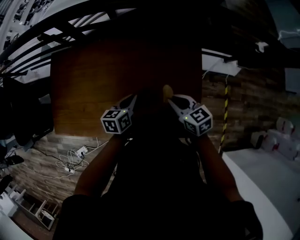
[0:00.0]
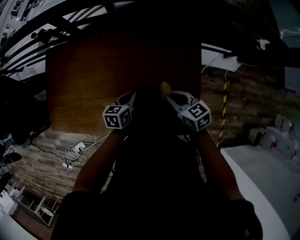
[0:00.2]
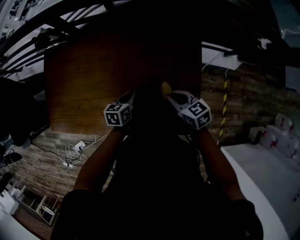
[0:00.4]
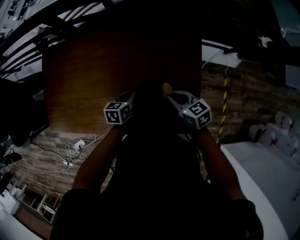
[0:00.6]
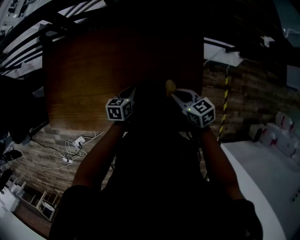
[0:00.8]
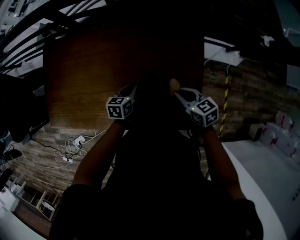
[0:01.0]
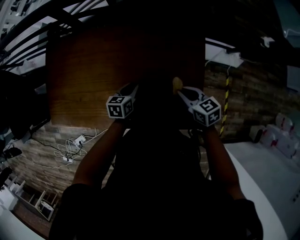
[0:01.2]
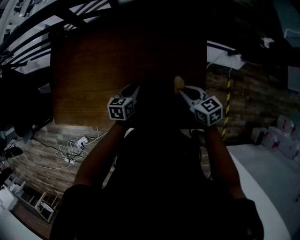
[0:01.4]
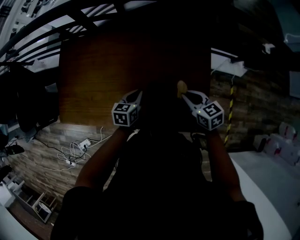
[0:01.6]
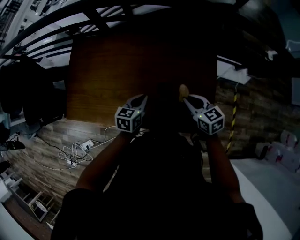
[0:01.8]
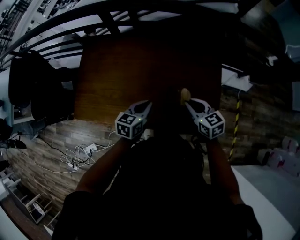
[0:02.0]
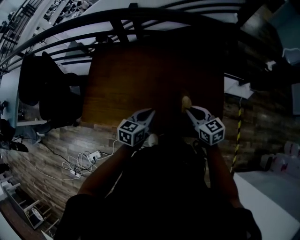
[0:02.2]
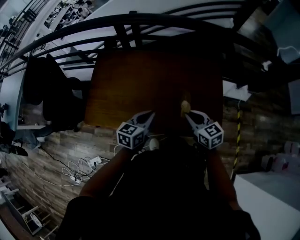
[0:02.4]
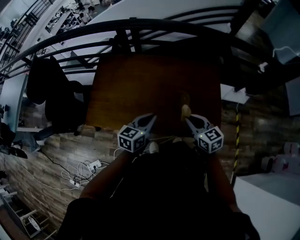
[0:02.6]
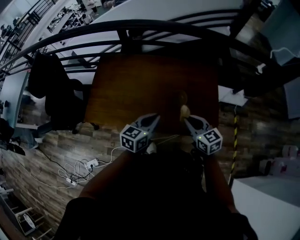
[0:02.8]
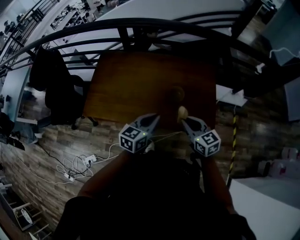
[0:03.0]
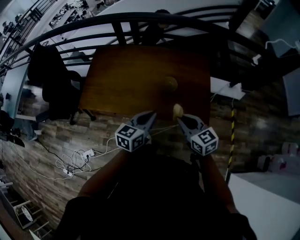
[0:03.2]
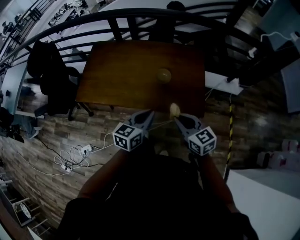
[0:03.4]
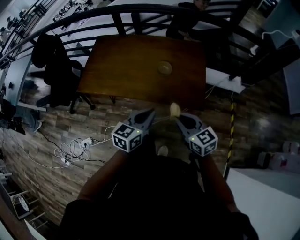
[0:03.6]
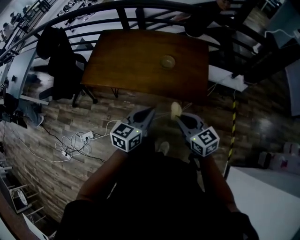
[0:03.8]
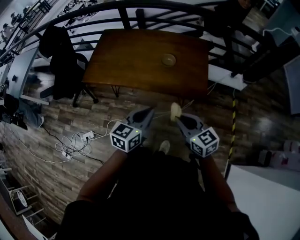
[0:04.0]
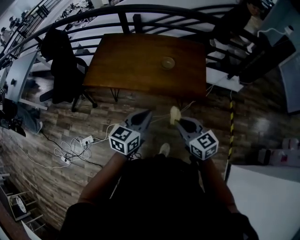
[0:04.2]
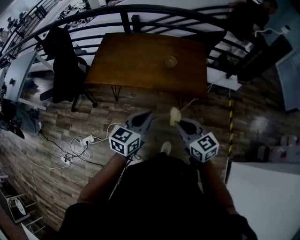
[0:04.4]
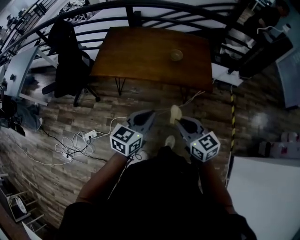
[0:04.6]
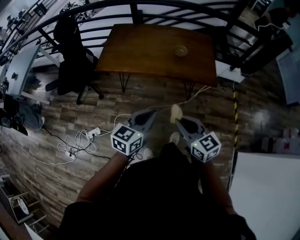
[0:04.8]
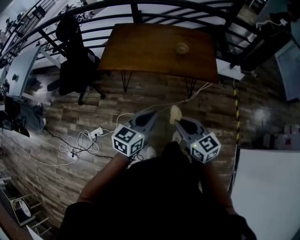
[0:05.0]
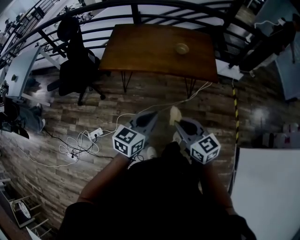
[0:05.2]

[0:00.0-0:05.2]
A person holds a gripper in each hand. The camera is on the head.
0:00.0 to 0:01.8: The right gripper moves roughly 5 cm; the left gripper heads backward and to the left, covering about 10 cm, and travels downward and back again, some 10 cm each way.
0:01.8 to 0:03.4: The right gripper travels backward by approximately 30 cm; the left gripper is displaced backward and upward by some 35 cm.
0:03.4 to 0:05.2: Both grippers travel together backward and to the left, some 40 cm.

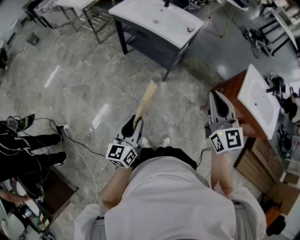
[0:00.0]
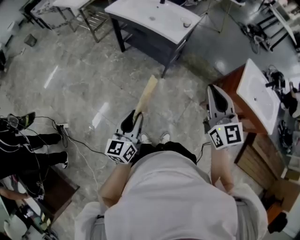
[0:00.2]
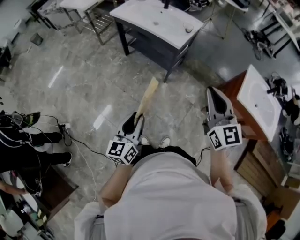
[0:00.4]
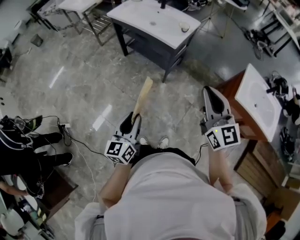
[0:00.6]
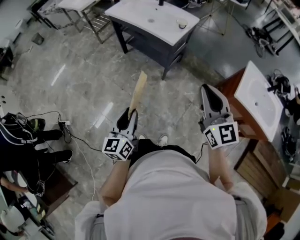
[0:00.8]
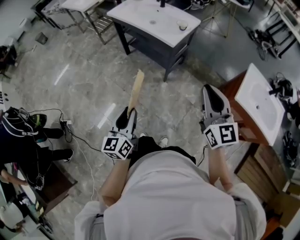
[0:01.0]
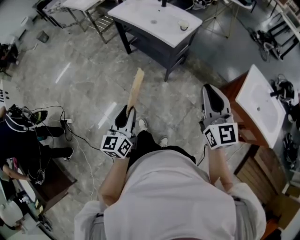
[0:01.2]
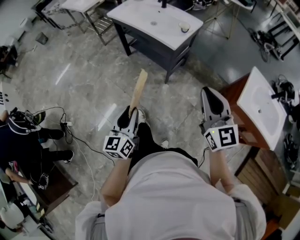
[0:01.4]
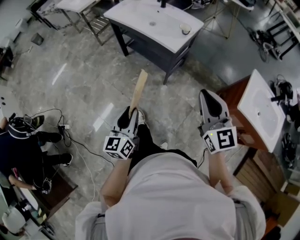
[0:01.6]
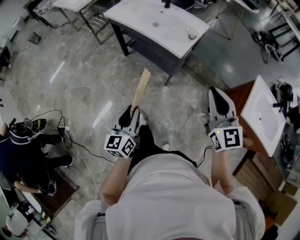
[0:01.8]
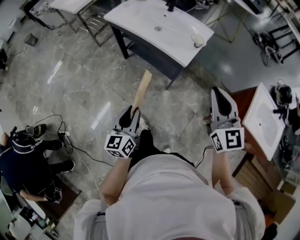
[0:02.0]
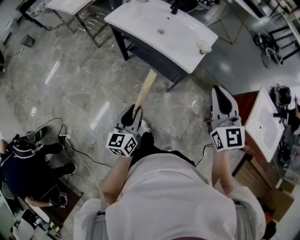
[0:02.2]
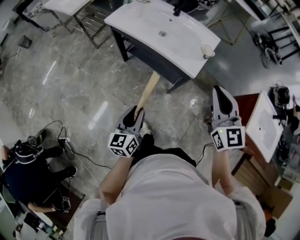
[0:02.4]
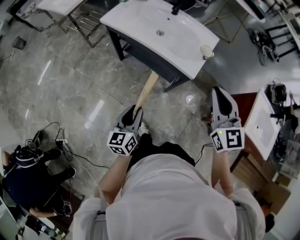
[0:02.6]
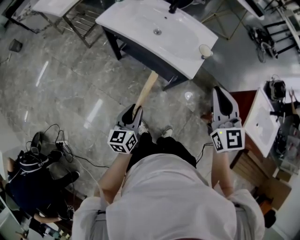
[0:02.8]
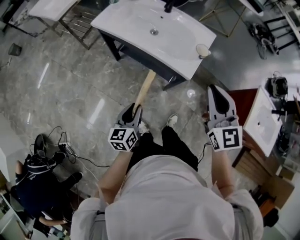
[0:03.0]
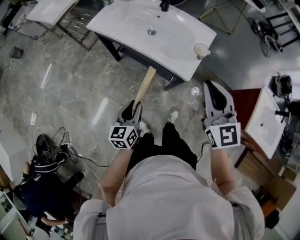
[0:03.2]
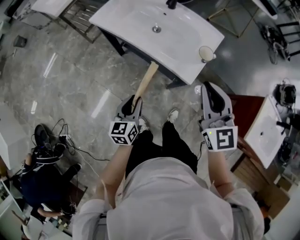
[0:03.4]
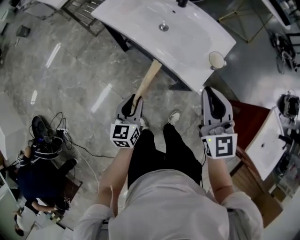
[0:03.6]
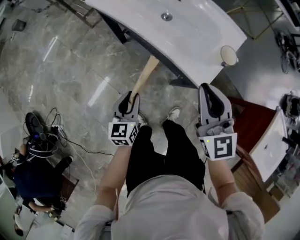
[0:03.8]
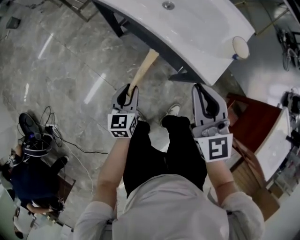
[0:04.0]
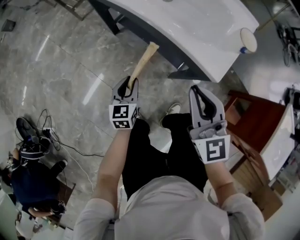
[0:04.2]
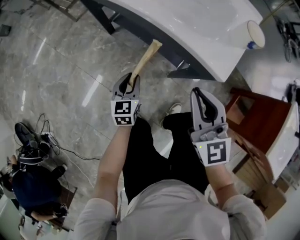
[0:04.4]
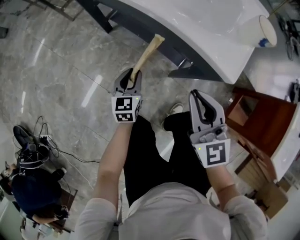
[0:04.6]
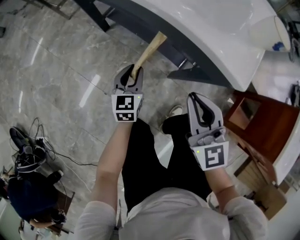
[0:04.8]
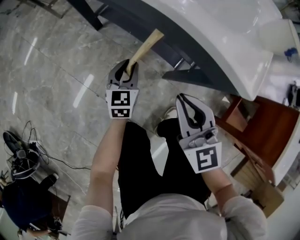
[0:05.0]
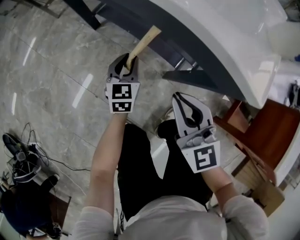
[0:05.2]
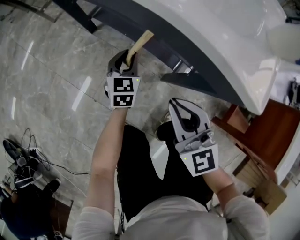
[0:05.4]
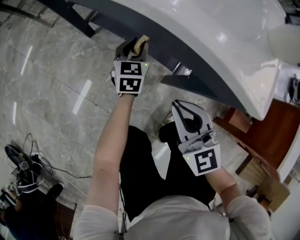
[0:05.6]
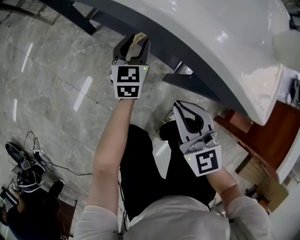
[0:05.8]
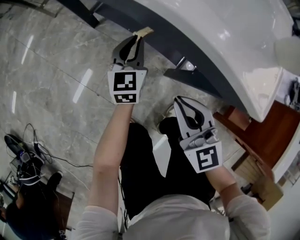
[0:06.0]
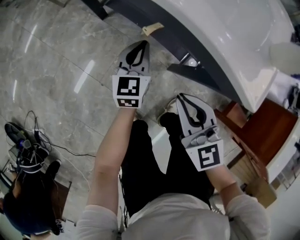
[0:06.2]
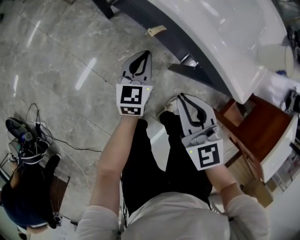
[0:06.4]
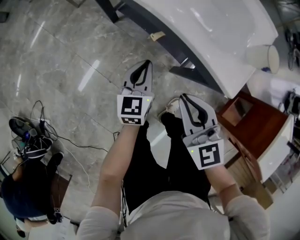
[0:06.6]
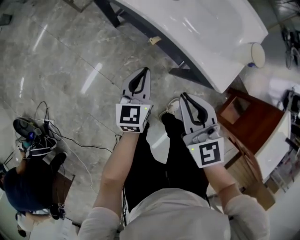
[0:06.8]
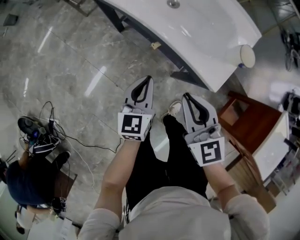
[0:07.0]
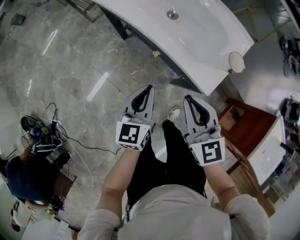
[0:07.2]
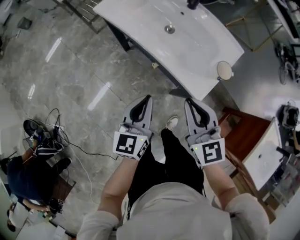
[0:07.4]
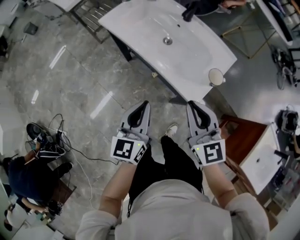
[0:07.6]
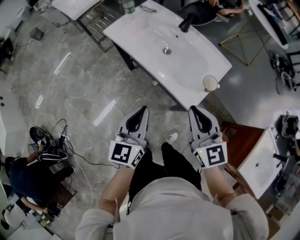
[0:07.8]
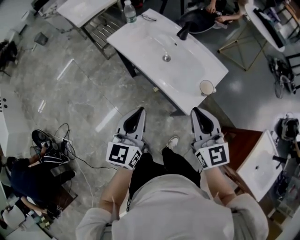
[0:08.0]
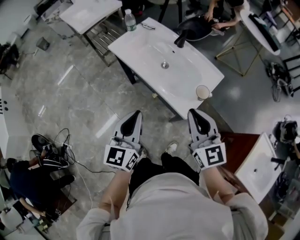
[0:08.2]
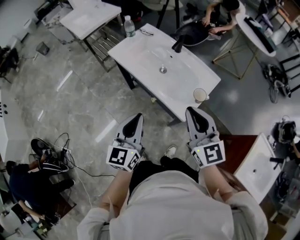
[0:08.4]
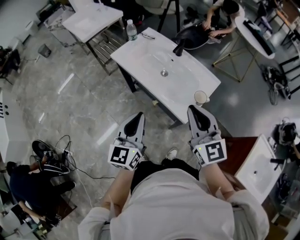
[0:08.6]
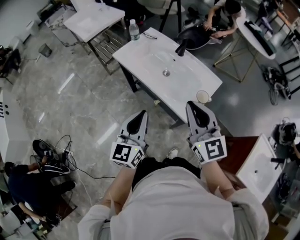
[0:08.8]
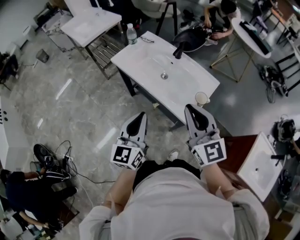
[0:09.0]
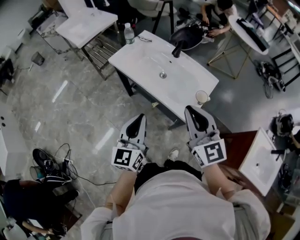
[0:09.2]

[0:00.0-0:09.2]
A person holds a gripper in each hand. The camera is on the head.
0:00.0 to 0:01.6: The left gripper is displaced forward and to the right by about 10 cm. Meanwhile the right gripper moves forward, about 10 cm.
0:01.6 to 0:03.0: The grippers both shift forward by approximately 25 cm.
0:03.0 to 0:04.6: The left gripper heads downward and forward, covering approximately 35 cm, while the right gripper travels downward by about 35 cm.
0:04.6 to 0:06.2: The right gripper is displaced downward by approximately 10 cm, while the left gripper is displaced forward by some 10 cm, and closes.
0:06.2 to 0:07.6: Both grippers move upward, roughly 35 cm.
0:07.6 to 0:09.2: Both grippers move upward, approximately 15 cm.

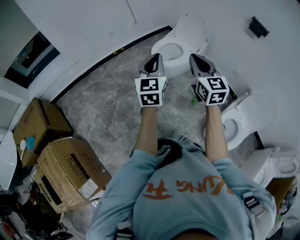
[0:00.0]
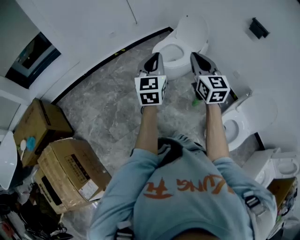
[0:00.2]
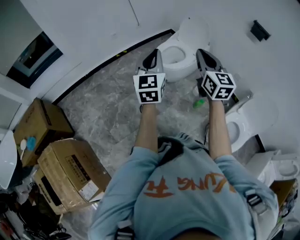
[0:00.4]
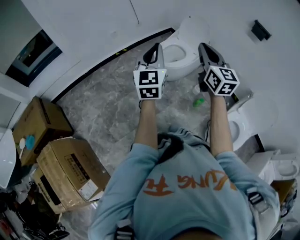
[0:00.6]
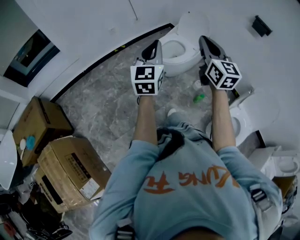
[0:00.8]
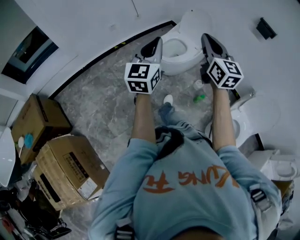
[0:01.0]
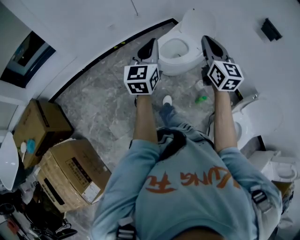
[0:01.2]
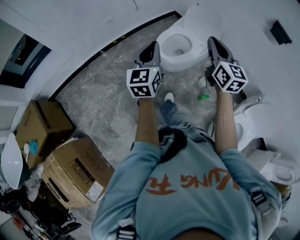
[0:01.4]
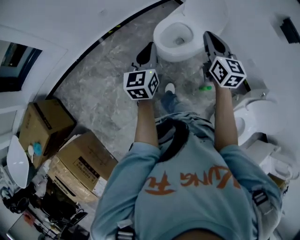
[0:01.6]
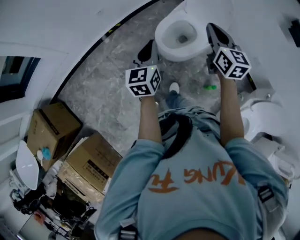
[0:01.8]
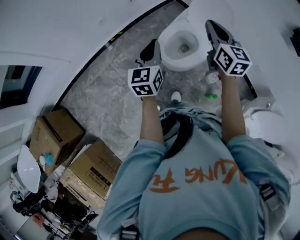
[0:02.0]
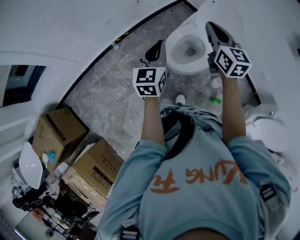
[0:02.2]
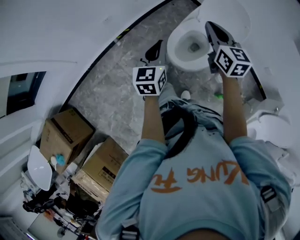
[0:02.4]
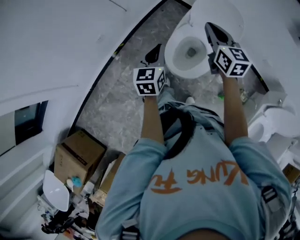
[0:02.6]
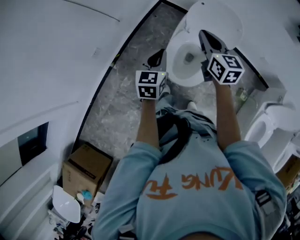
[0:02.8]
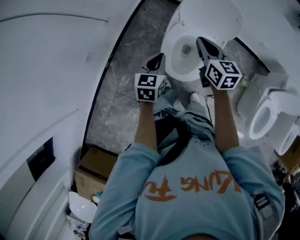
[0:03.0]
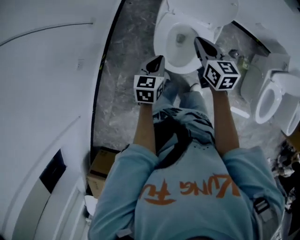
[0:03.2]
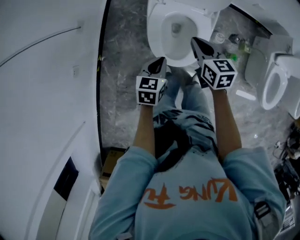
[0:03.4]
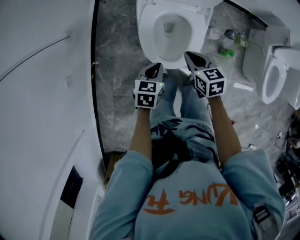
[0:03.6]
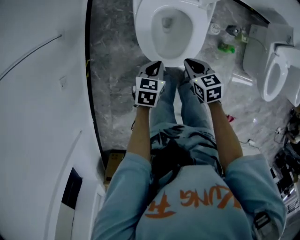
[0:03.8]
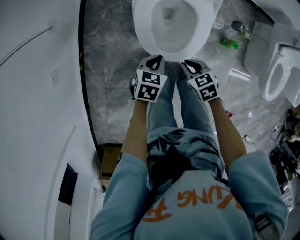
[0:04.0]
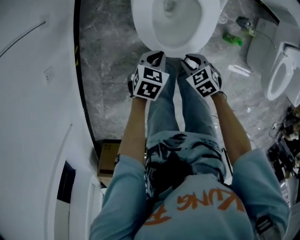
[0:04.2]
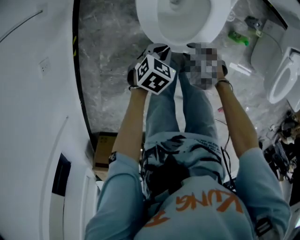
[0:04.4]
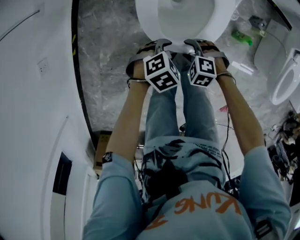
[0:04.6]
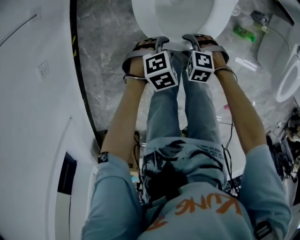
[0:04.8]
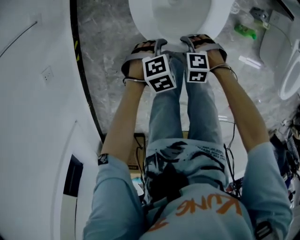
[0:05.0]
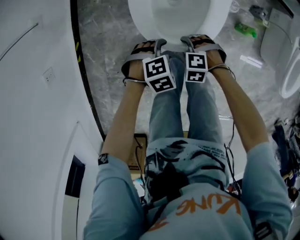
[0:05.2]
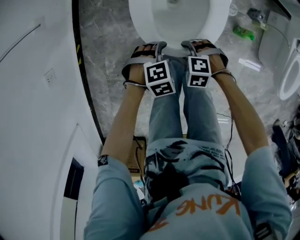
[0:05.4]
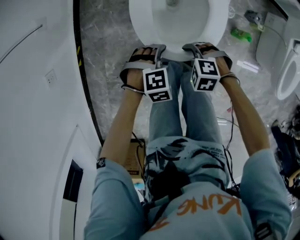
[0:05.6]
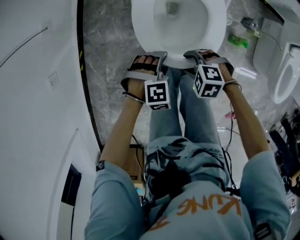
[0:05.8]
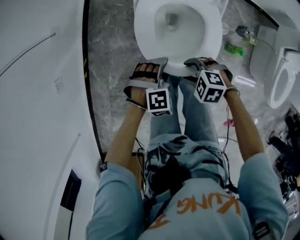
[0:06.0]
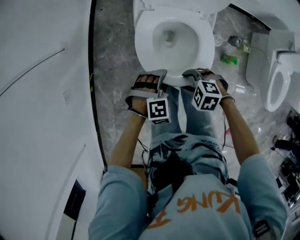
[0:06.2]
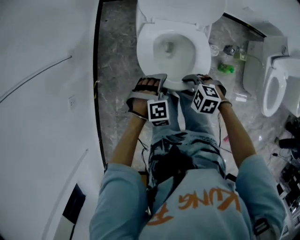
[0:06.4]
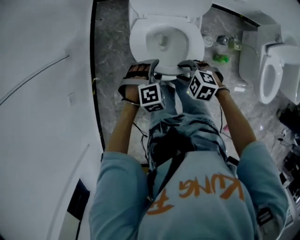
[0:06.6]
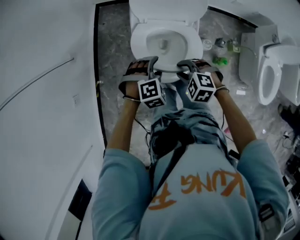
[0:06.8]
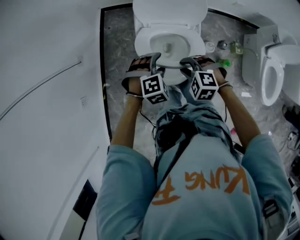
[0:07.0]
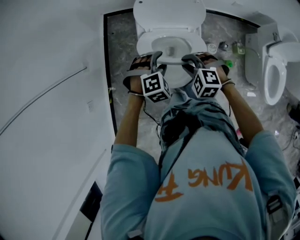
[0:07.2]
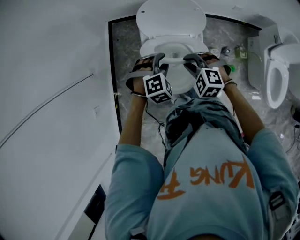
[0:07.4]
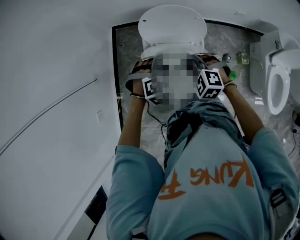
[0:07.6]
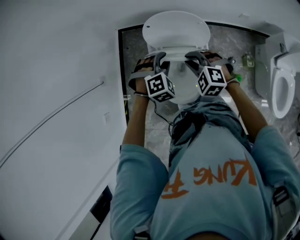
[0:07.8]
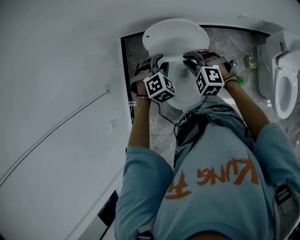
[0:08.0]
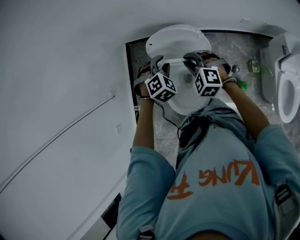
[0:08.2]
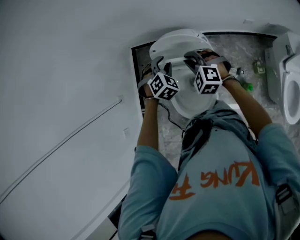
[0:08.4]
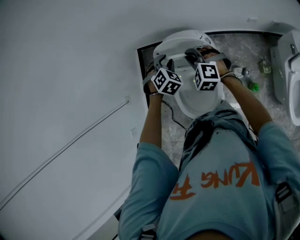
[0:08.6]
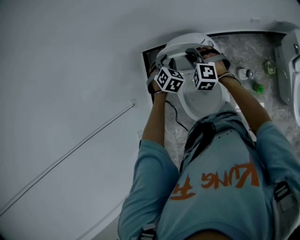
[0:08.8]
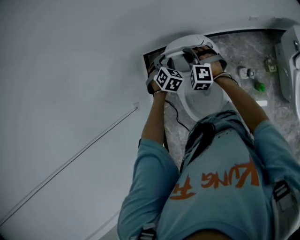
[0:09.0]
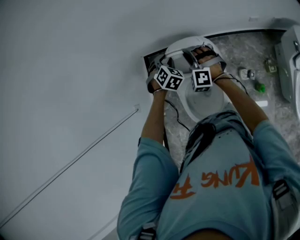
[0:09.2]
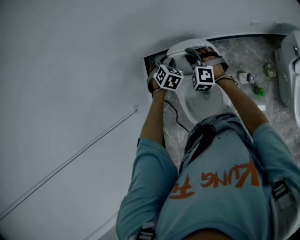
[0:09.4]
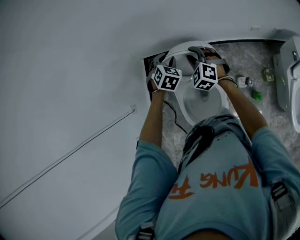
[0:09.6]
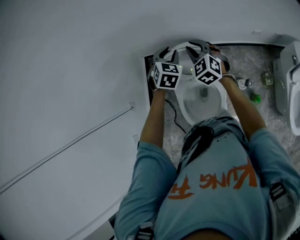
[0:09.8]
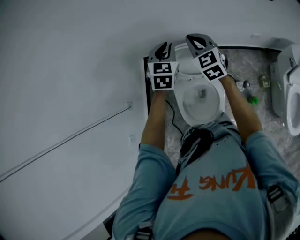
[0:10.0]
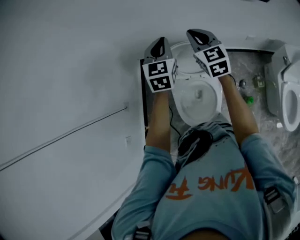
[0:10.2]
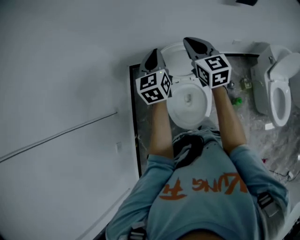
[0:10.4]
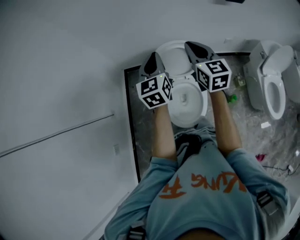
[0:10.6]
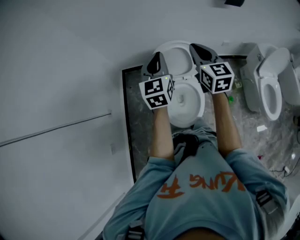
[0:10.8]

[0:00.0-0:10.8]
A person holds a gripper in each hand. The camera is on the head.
0:00.0 to 0:01.6: The right gripper travels forward by about 30 cm. Meanwhile the left gripper shifts approximately 30 cm forward and downward.
0:01.6 to 0:03.0: The left gripper shifts by approximately 40 cm, and turns by some 40 degrees. Meanwhile the right gripper ends up roughly 35 cm from where it was, and turns by some 30 degrees.
0:03.0 to 0:04.6: The grippers both shift downward by some 40 cm. The left gripper rotates roughly 70 degrees, and opens up, while the right gripper tilts its fingers some 50 degrees downward, and opens.
0:04.6 to 0:06.2: Both grippers travel together upward, some 15 cm. The left gripper changes its angle by some 40 degrees, and opens up.
0:06.2 to 0:07.8: The right gripper moves roughly 35 cm, turns by some 40 degrees, and closes. The left gripper shifts by roughly 35 cm, and closes its fingers.
0:07.8 to 0:09.2: Both grippers travel together forward, some 20 cm. The left gripper rotates roughly 20 degrees, while the right gripper swivels some 30 degrees.
0:09.2 to 0:10.8: The two grippers go roughly 30 cm upward and backward. The right gripper twists roughly 60 degrees clockwise, seen from behind; the left gripper angles its fingers upward, by some 50 degrees, and closes its fingers.
